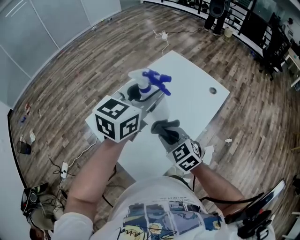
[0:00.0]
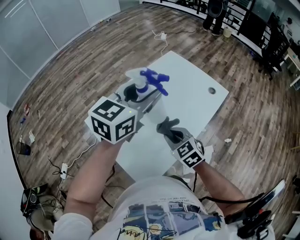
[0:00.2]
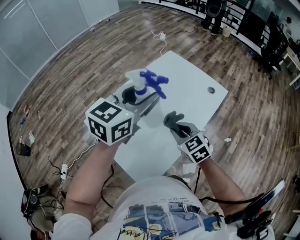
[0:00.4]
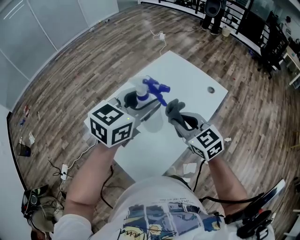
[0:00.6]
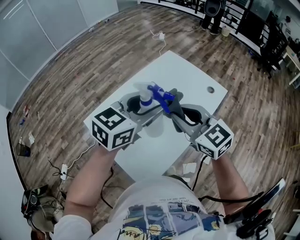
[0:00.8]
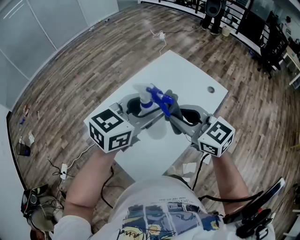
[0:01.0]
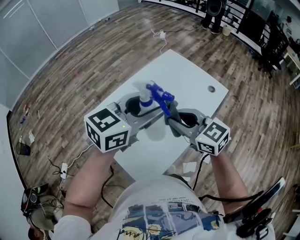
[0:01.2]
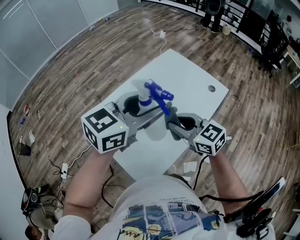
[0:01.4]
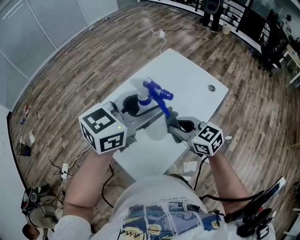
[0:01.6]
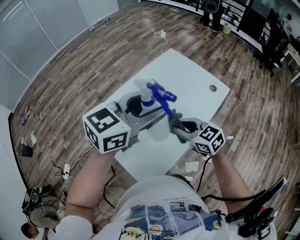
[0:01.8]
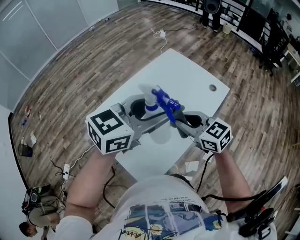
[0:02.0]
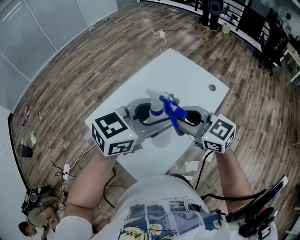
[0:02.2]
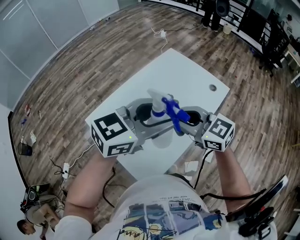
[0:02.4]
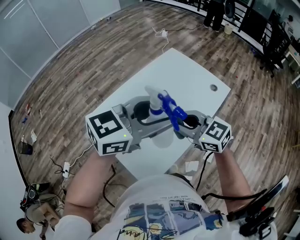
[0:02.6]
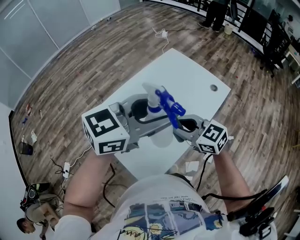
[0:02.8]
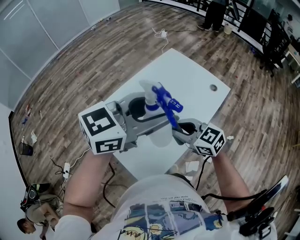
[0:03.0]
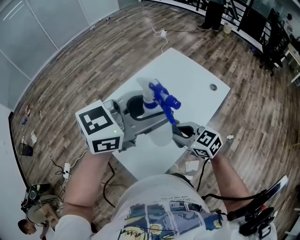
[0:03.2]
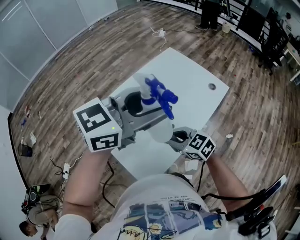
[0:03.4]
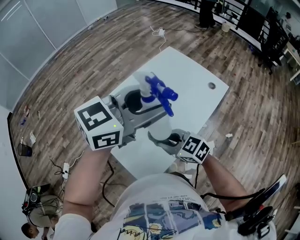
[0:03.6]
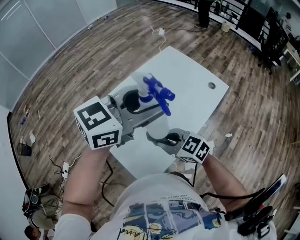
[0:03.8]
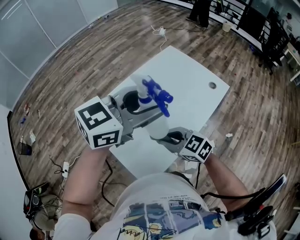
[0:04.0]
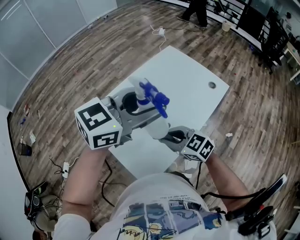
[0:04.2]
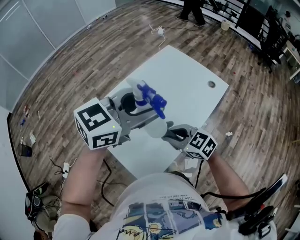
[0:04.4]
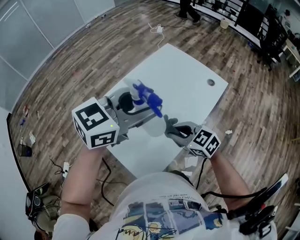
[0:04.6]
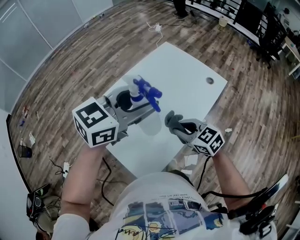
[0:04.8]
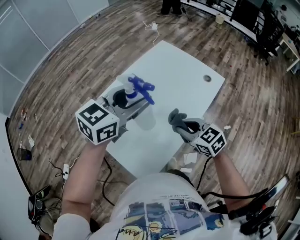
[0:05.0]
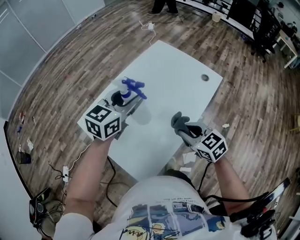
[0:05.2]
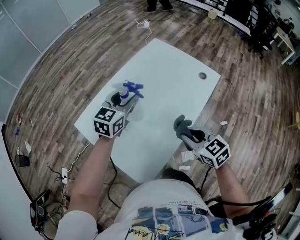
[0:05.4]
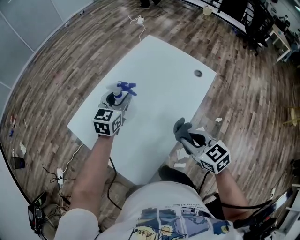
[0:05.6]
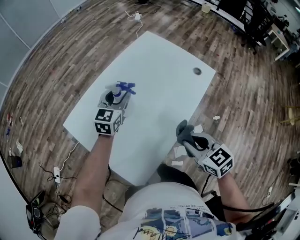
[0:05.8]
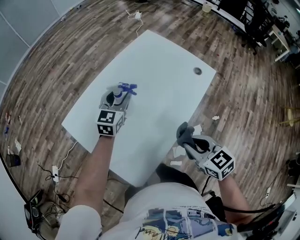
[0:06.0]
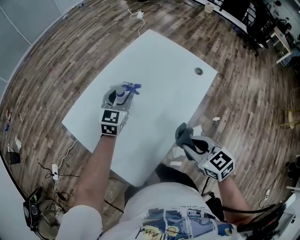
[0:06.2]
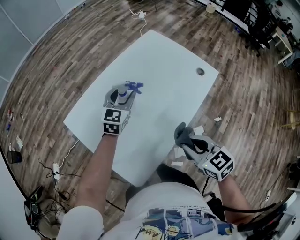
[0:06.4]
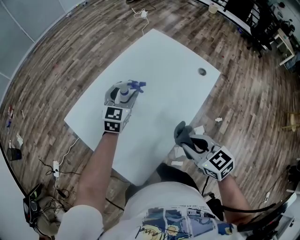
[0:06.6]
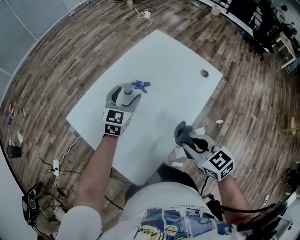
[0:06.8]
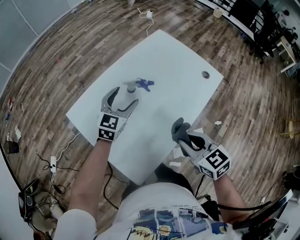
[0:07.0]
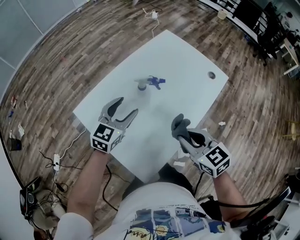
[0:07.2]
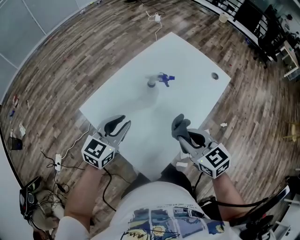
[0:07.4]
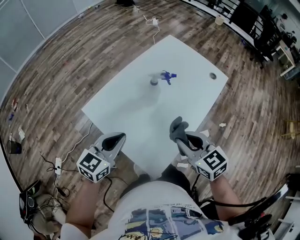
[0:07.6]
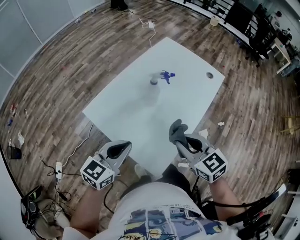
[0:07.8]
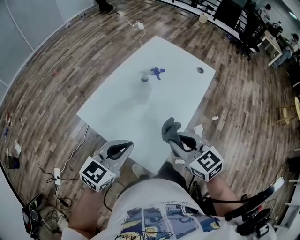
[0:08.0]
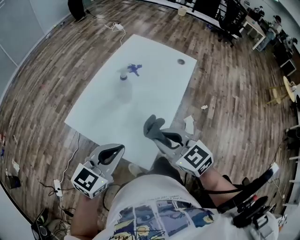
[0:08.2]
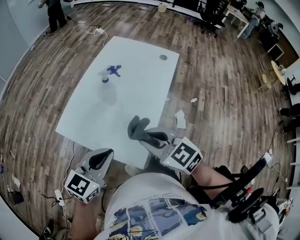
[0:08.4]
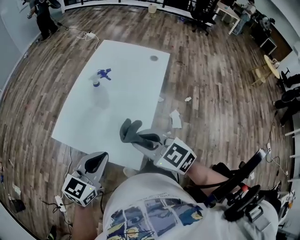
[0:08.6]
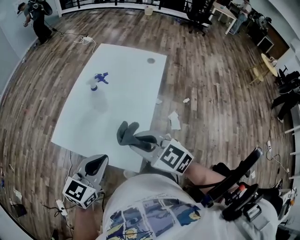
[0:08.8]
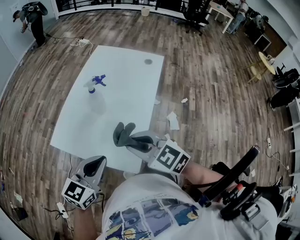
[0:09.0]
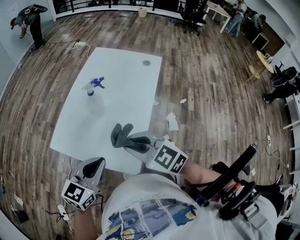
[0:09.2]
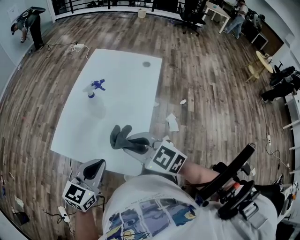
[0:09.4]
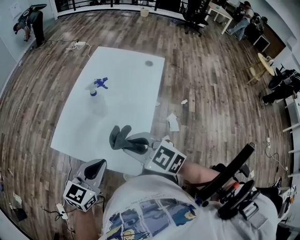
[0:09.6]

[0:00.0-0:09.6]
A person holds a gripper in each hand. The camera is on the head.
0:00.0 to 0:01.6: The right gripper goes upward and returns, approximately 15 cm each way, and rotates roughly 20 degrees, while the left gripper is displaced backward by approximately 5 cm.
0:01.6 to 0:03.2: The right gripper reaches approximately 10 cm upward, then returns.
0:03.2 to 0:04.8: The left gripper ends up some 5 cm from where it was.
0:04.8 to 0:06.4: The right gripper heads to the right and backward, covering about 10 cm. The left gripper shifts approximately 25 cm downward and forward, and turns by roughly 30 degrees.
0:06.4 to 0:08.0: The right gripper heads to the left, covering about 15 cm, while the left gripper shifts about 30 cm backward, changes its angle by some 30 degrees, and closes its fingers.
0:08.0 to 0:09.6: The grippers make only small movements.

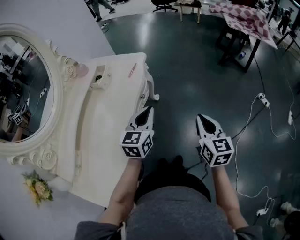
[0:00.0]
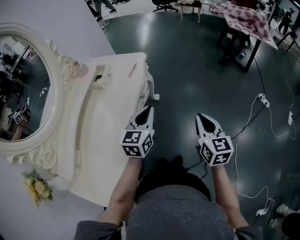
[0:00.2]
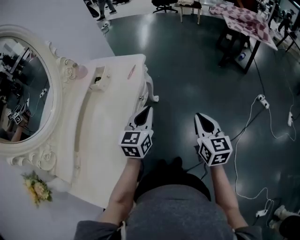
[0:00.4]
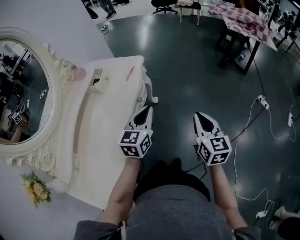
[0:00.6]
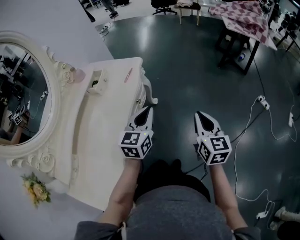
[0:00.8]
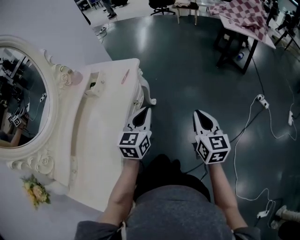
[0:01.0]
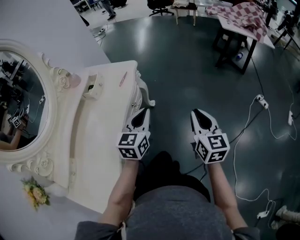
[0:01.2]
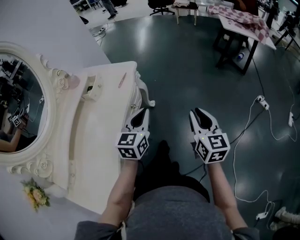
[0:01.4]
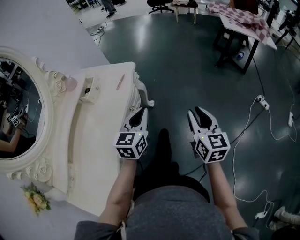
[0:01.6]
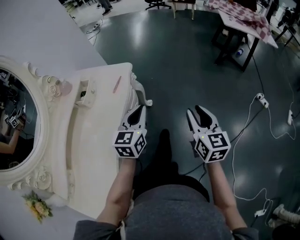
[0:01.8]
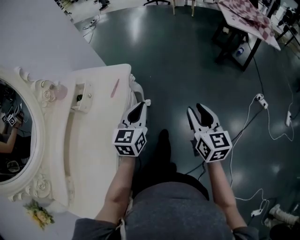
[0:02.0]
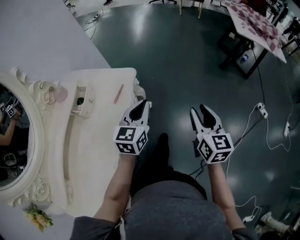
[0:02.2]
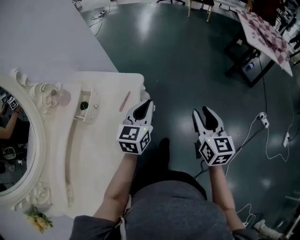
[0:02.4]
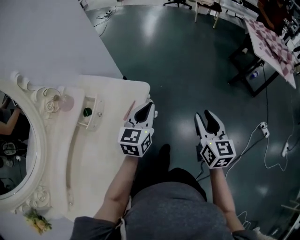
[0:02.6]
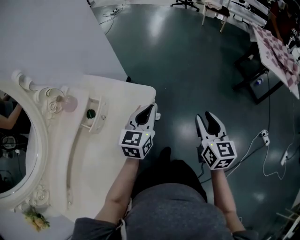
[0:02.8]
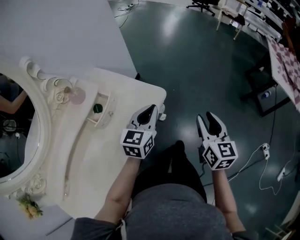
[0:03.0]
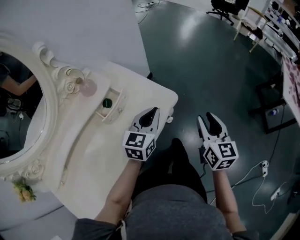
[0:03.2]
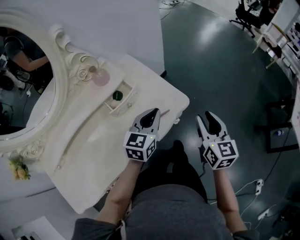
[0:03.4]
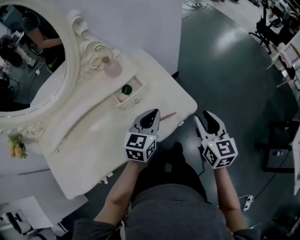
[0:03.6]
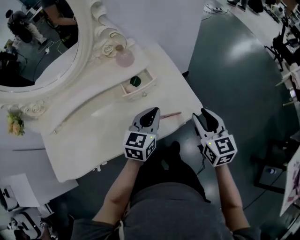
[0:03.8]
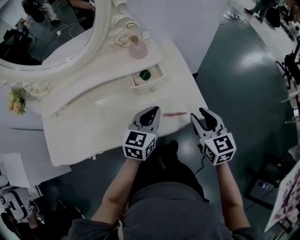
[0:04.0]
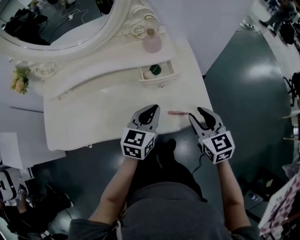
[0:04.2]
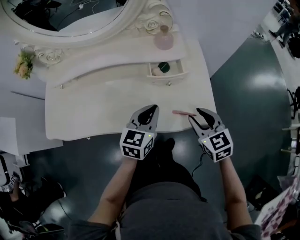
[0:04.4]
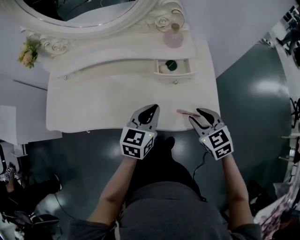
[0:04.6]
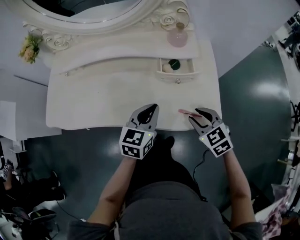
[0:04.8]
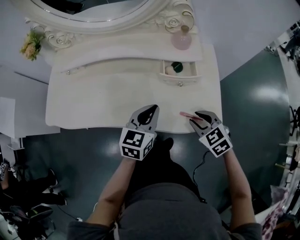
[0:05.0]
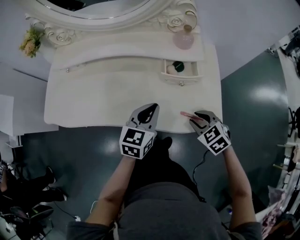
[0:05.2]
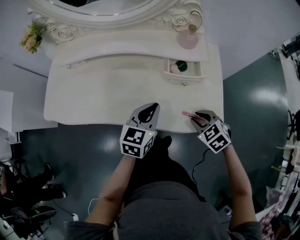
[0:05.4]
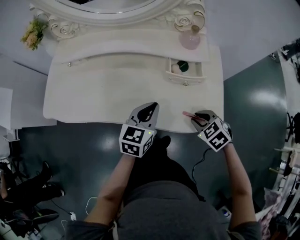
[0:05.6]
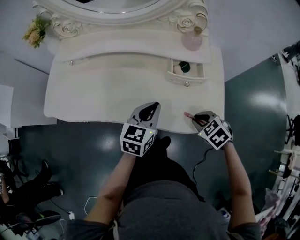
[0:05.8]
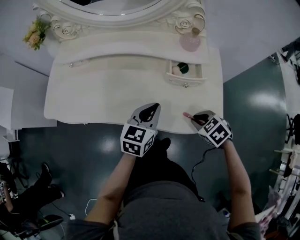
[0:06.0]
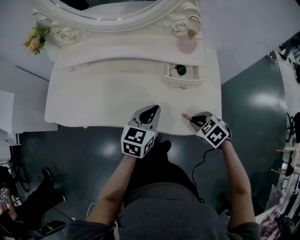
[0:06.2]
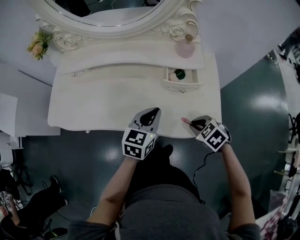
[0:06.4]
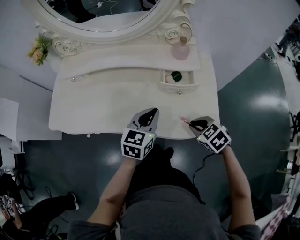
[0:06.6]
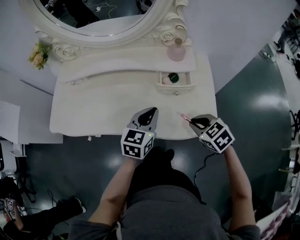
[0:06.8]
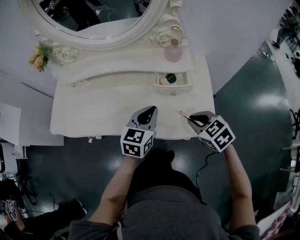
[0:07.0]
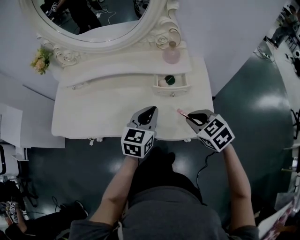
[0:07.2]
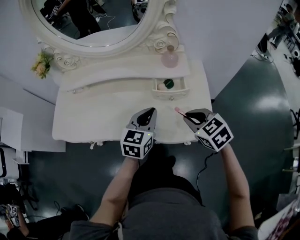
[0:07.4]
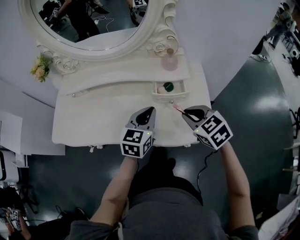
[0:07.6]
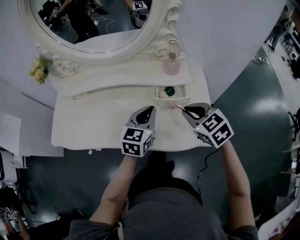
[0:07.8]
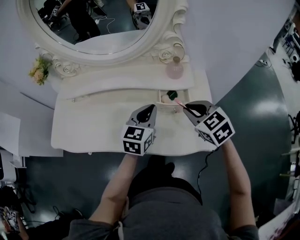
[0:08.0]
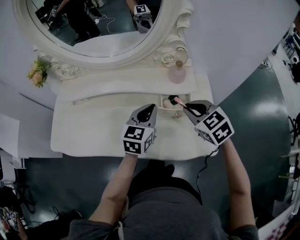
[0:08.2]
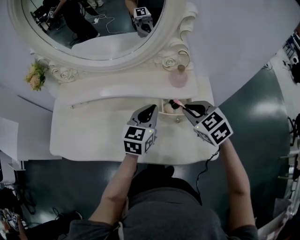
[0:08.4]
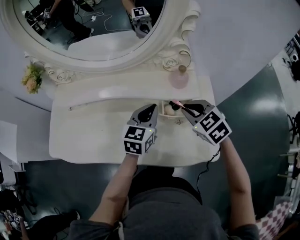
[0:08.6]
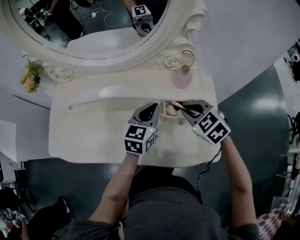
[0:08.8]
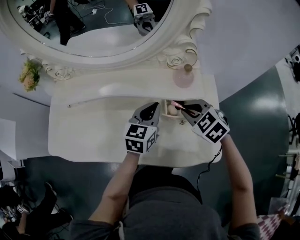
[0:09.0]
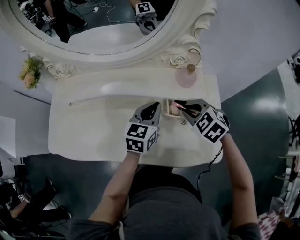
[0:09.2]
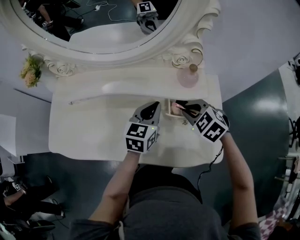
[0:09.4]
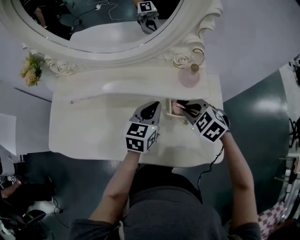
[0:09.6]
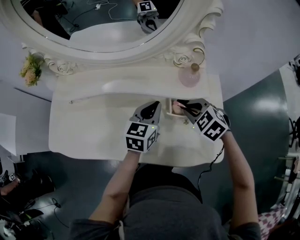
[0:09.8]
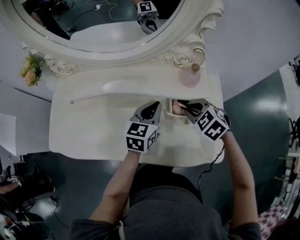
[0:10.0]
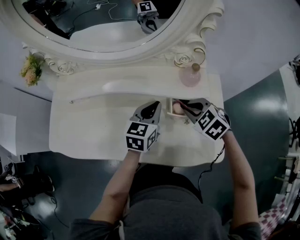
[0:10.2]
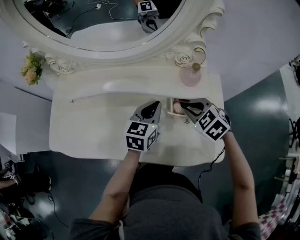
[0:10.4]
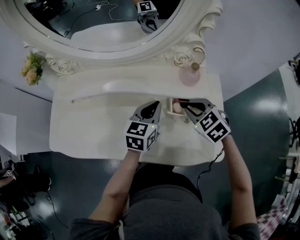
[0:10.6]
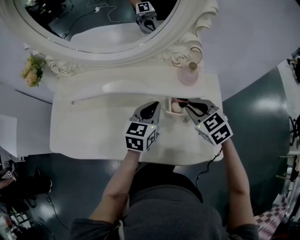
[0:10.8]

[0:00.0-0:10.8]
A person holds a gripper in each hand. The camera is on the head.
0:00.0 to 0:01.6: The two grippers go roughly 10 cm forward. The right gripper opens.
0:01.6 to 0:03.0: The right gripper heads forward, covering about 30 cm. Meanwhile the left gripper shifts roughly 30 cm forward and to the left.
0:03.0 to 0:04.6: The right gripper changes place by some 25 cm, and changes its angle by about 90 degrees, while the left gripper ends up some 20 cm from where it was, and rotates about 60 degrees.
0:04.6 to 0:06.2: The right gripper heads downward, covering about 5 cm, changes its angle by approximately 30 degrees, and closes its fingers.
0:06.2 to 0:07.8: The right gripper goes approximately 15 cm upward and forward, and changes its angle by approximately 30 degrees, while the left gripper shifts about 10 cm forward and upward.
0:07.8 to 0:09.2: The right gripper heads forward and downward, covering approximately 10 cm; the left gripper shifts some 10 cm forward.
0:09.2 to 0:10.8: The grippers move only a little.

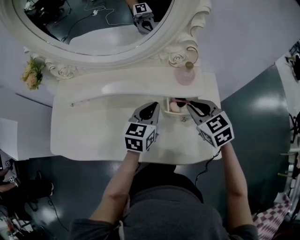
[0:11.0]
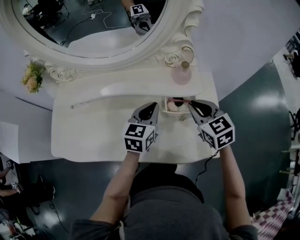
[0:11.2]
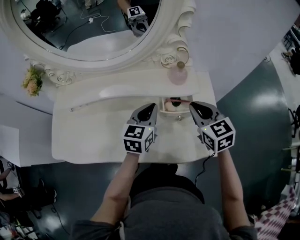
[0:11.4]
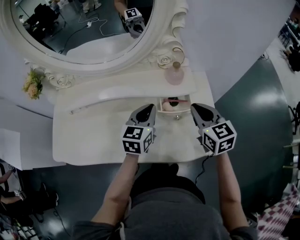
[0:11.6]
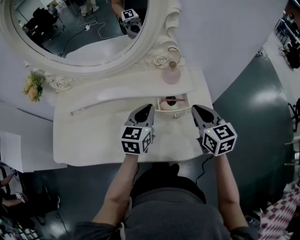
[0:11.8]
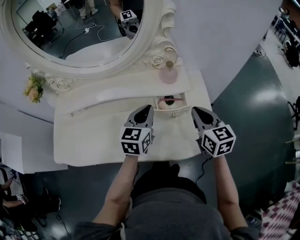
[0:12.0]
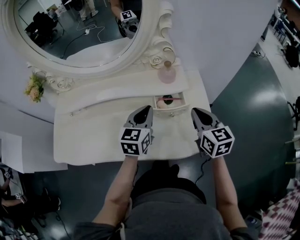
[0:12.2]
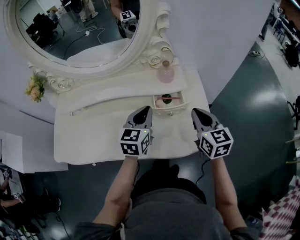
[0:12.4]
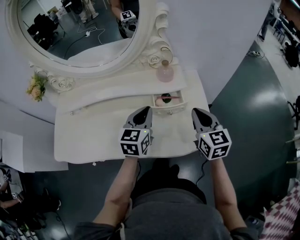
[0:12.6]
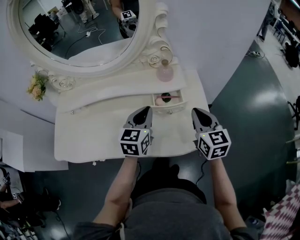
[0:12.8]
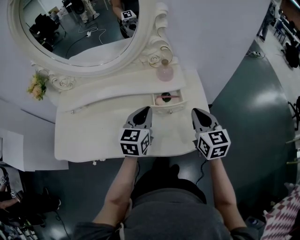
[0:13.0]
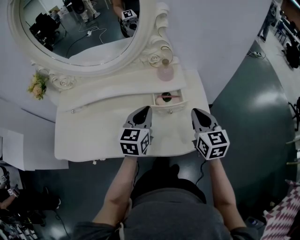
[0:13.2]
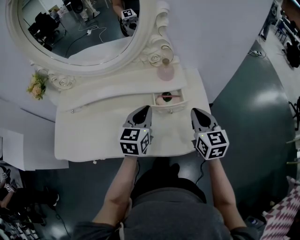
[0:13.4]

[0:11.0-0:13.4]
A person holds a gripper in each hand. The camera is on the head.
0:11.0 to 0:12.2: The left gripper shifts by roughly 5 cm; the right gripper is displaced to the right and backward by roughly 10 cm, and swivels some 30 degrees.
0:12.2 to 0:13.4: There are only small adjustments of the grippers.

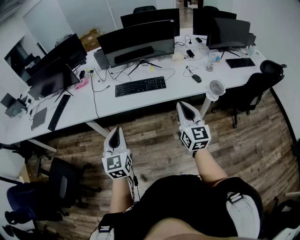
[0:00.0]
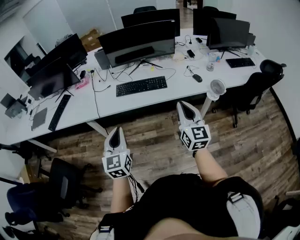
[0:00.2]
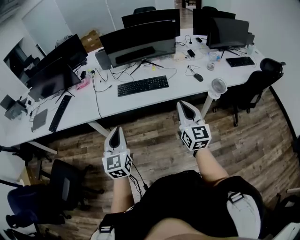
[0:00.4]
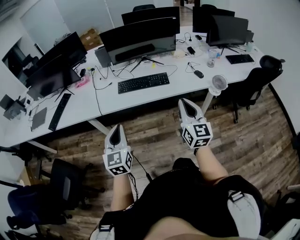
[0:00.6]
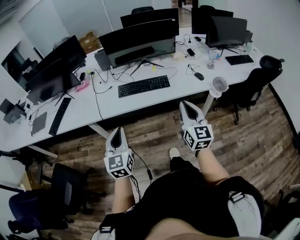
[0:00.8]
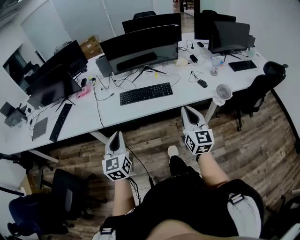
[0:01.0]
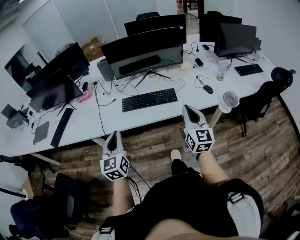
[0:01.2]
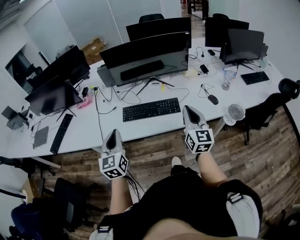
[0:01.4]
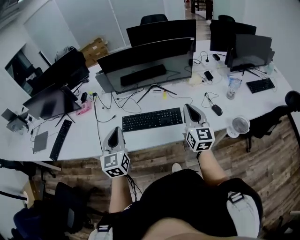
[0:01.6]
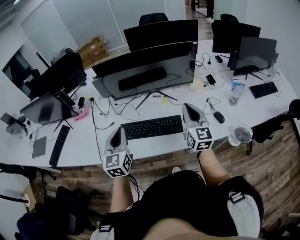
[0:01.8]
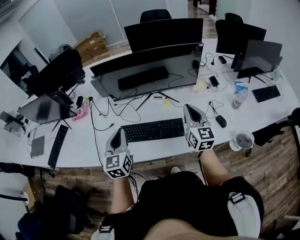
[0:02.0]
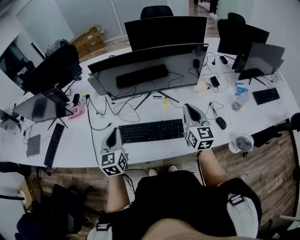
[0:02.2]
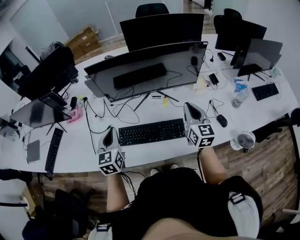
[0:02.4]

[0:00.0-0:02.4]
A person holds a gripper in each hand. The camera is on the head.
0:00.0 to 0:01.2: The left gripper moves forward and to the left, some 15 cm; the right gripper shifts about 10 cm forward.
0:01.2 to 0:02.4: Both grippers travel together forward, about 35 cm.
